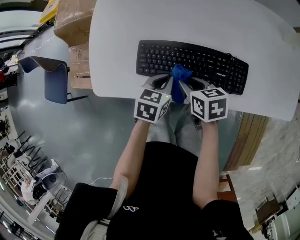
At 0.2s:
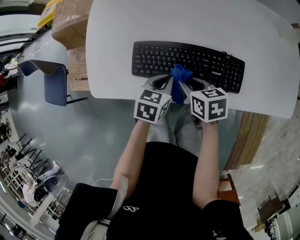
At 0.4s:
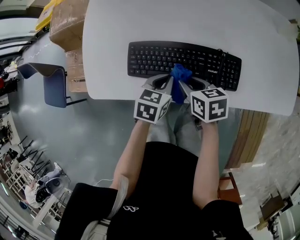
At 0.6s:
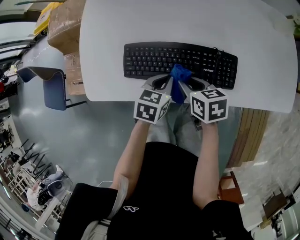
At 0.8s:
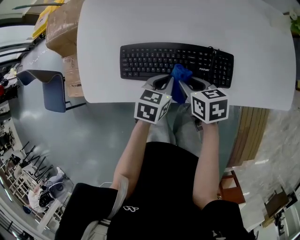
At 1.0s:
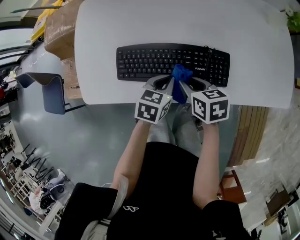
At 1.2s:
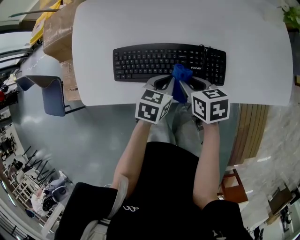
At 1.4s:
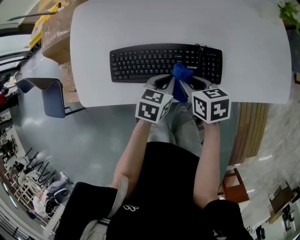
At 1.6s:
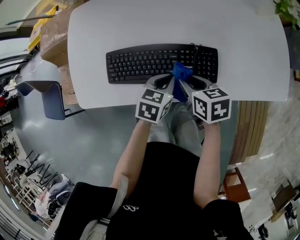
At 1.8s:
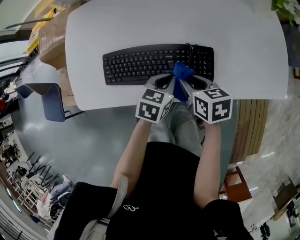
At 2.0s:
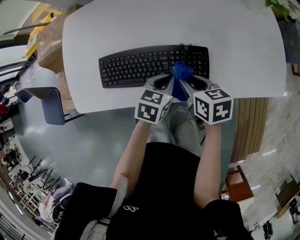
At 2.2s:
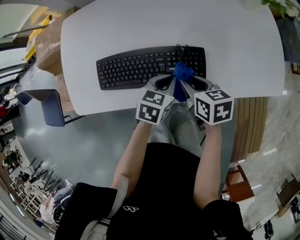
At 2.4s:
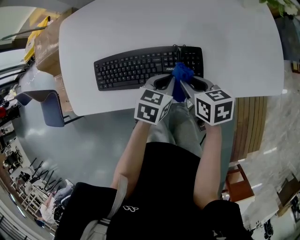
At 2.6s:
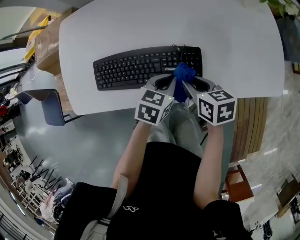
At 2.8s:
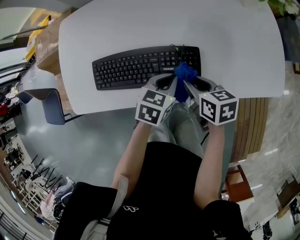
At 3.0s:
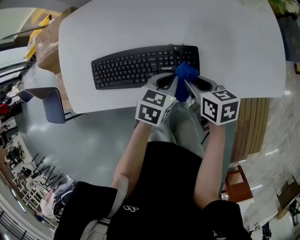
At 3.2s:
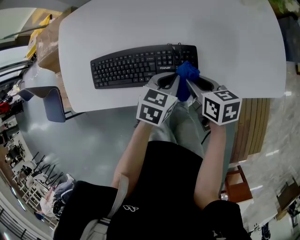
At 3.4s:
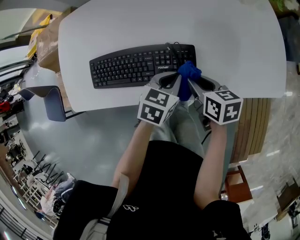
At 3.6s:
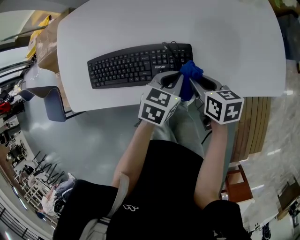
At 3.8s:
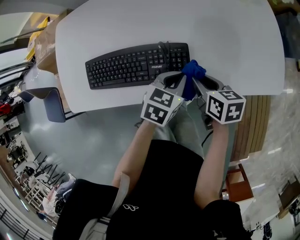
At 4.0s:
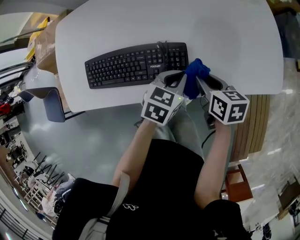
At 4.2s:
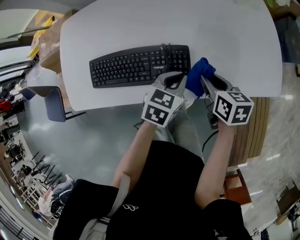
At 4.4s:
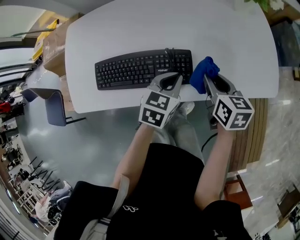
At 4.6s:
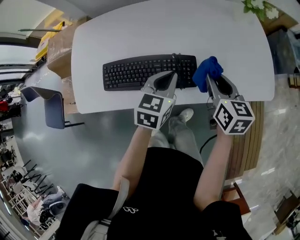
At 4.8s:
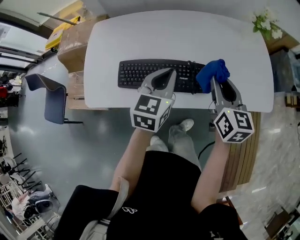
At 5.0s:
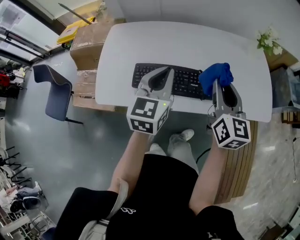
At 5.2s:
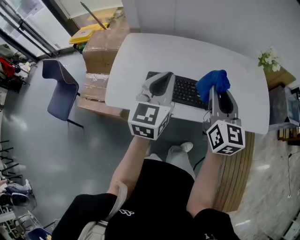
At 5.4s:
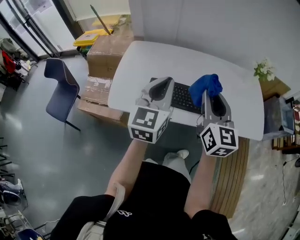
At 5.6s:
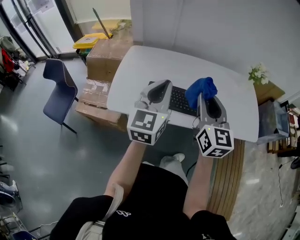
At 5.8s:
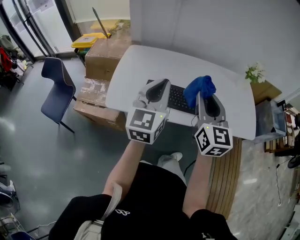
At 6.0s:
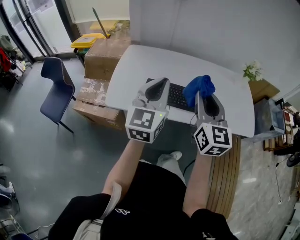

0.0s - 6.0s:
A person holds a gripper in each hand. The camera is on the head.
0.0s - 1.6s: The two grippers go some 15 cm to the right.
1.6s - 3.0s: The grippers both shift to the right by about 10 cm.
3.0s - 4.4s: The right gripper heads to the right and upward, covering roughly 10 cm; the left gripper goes roughly 5 cm upward.
4.4s - 6.0s: The grippers both shift upward, to the left and backward by approximately 40 cm. The left gripper tips its fingers upward by about 40 degrees; the right gripper points its fingers roughly 40 degrees further upward.

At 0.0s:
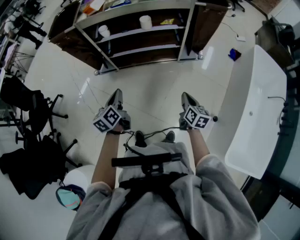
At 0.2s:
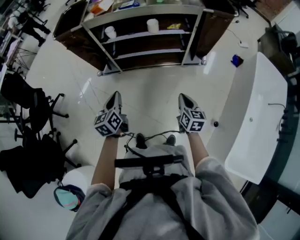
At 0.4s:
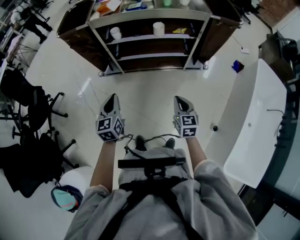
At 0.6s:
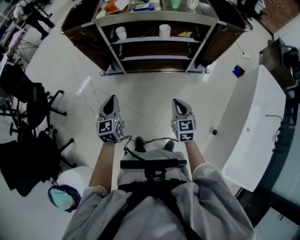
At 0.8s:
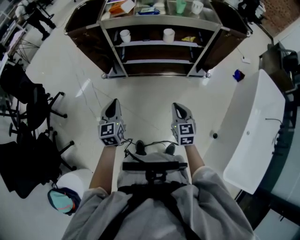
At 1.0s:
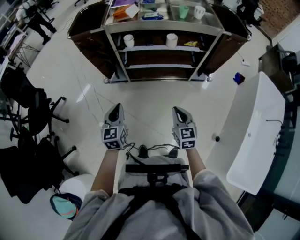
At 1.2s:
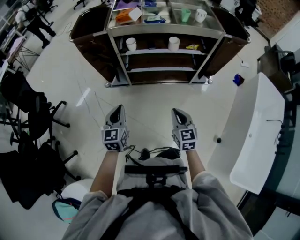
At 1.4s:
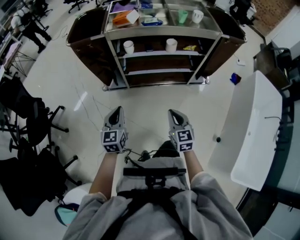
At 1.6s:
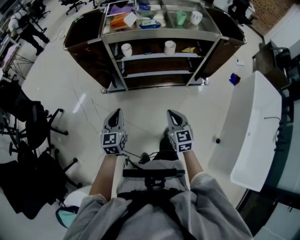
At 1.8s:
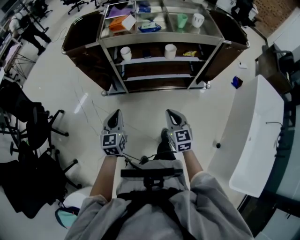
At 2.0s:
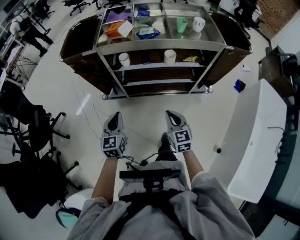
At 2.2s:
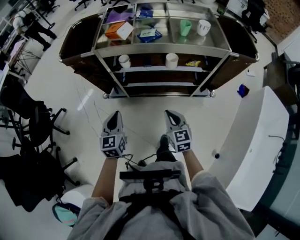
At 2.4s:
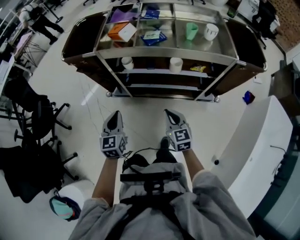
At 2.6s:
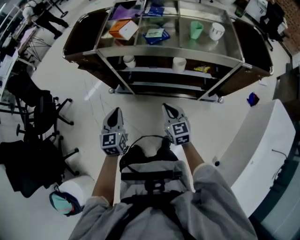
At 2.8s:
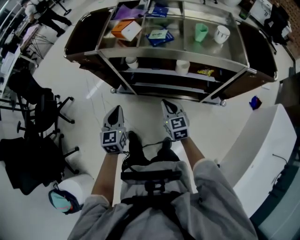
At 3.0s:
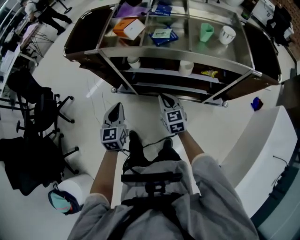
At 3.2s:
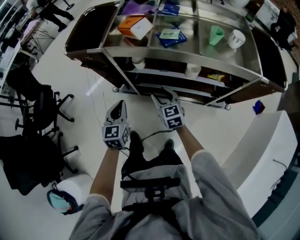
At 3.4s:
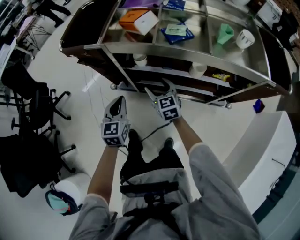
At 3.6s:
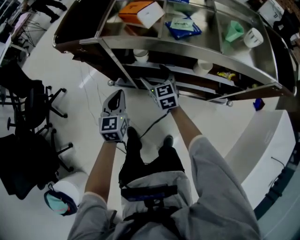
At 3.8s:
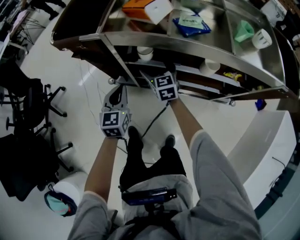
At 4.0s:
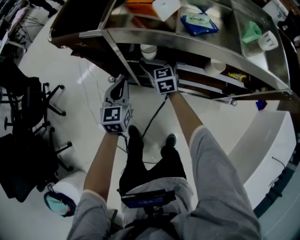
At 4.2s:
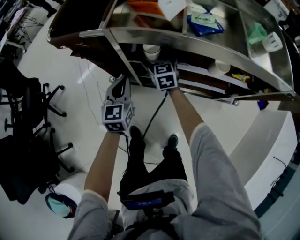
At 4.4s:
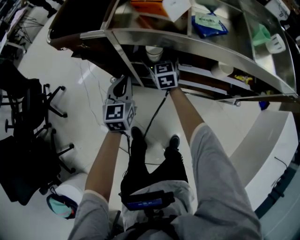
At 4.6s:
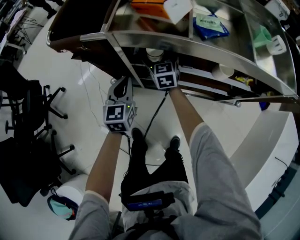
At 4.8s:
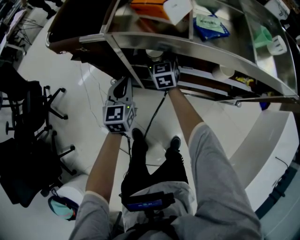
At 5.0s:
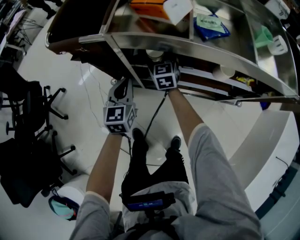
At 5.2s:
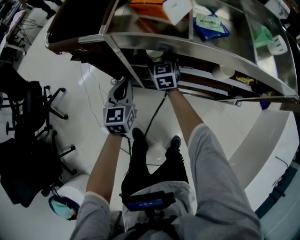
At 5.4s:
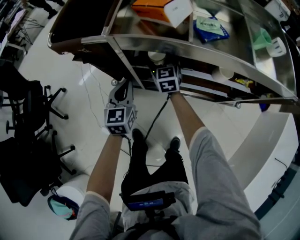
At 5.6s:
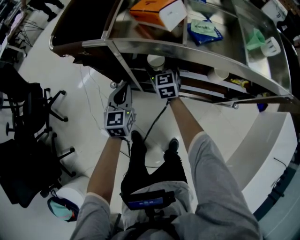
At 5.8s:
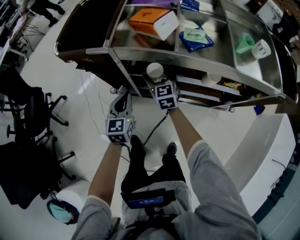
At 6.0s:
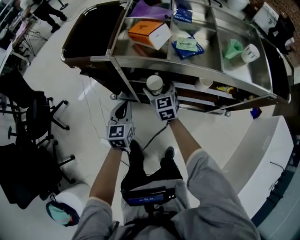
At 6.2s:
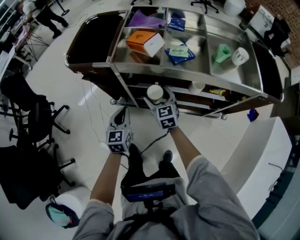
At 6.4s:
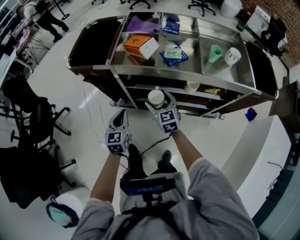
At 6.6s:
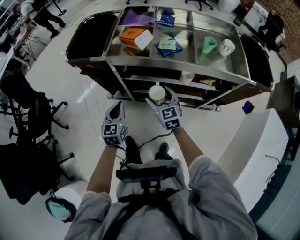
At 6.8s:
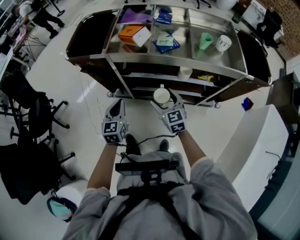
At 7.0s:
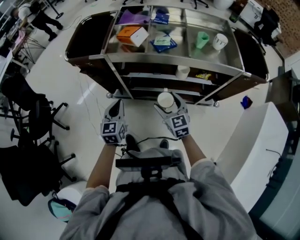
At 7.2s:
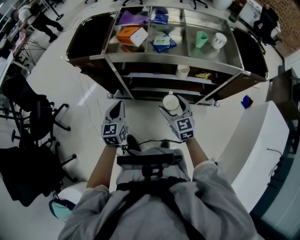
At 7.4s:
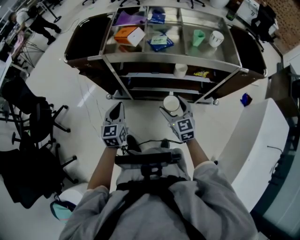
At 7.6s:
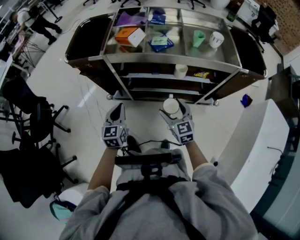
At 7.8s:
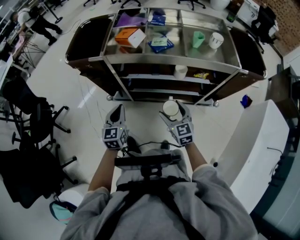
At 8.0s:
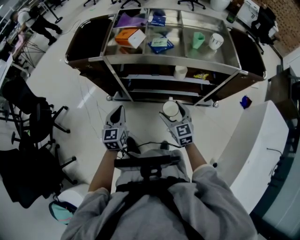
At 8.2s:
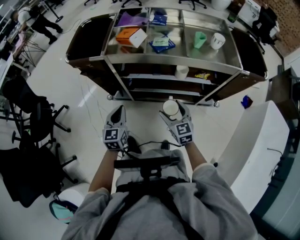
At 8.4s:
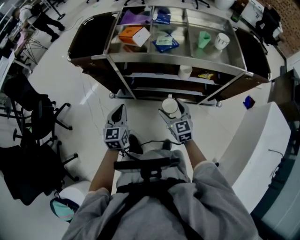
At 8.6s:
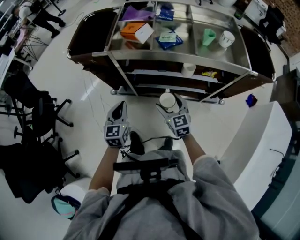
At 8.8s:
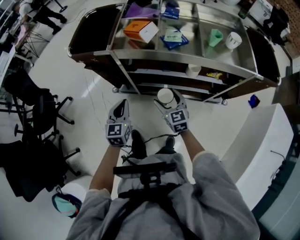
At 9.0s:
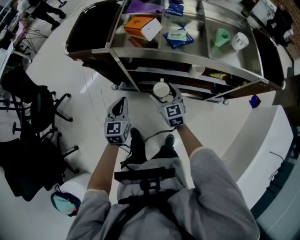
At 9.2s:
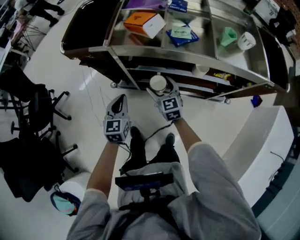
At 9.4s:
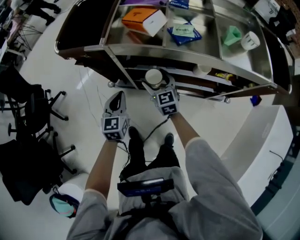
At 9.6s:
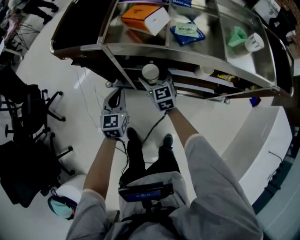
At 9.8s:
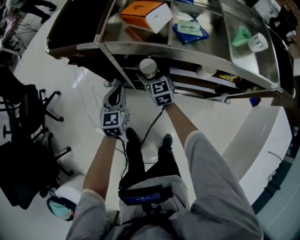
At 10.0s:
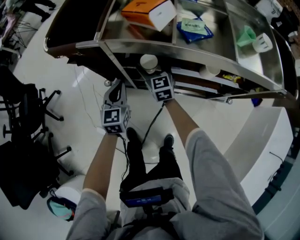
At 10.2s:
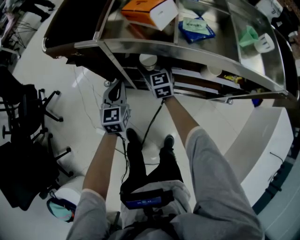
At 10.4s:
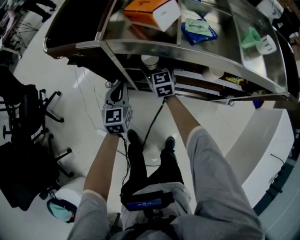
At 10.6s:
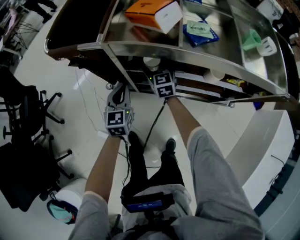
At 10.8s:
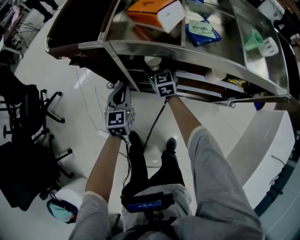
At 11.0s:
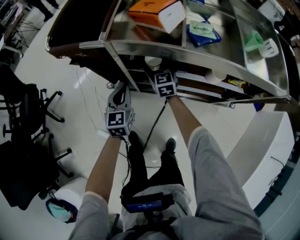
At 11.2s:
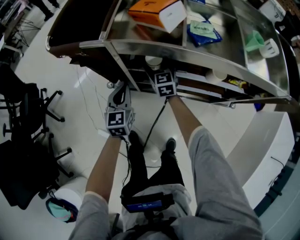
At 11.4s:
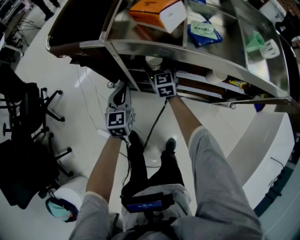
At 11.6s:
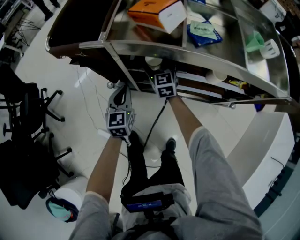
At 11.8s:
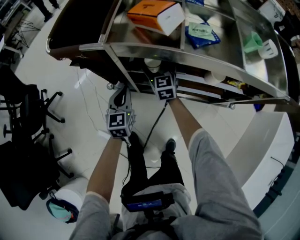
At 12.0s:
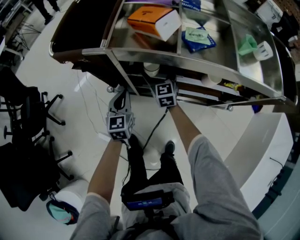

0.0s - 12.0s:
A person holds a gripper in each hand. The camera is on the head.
0.0s - 1.6s: The right gripper travels to the left by some 25 cm, and turns by approximately 40 degrees. Meanwhile the left gripper travels to the left and forward by approximately 15 cm, and rotates roughly 30 degrees.
1.6s - 3.0s: The left gripper goes roughly 20 cm forward and to the right, while the right gripper moves forward, about 30 cm.
3.0s - 4.4s: The right gripper shifts about 30 cm forward and to the left, and opens its fingers. Meanwhile the left gripper heads forward and downward, covering some 20 cm.
4.4s - 6.0s: The right gripper heads backward and upward, covering approximately 15 cm; the left gripper moves backward, some 5 cm.
6.0s - 7.6s: The left gripper goes approximately 15 cm backward and upward. The right gripper is displaced backward and to the right by some 25 cm.
7.6s - 9.0s: The left gripper moves forward, about 5 cm. The right gripper goes about 15 cm forward, to the left and downward.
9.0s - 10.4s: The right gripper is displaced forward by approximately 20 cm. The left gripper moves forward and downward, approximately 15 cm.
10.4s - 12.0s: The grippers make only small movements.

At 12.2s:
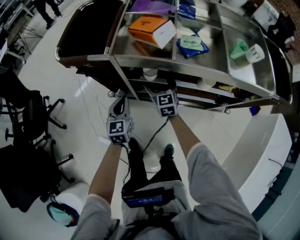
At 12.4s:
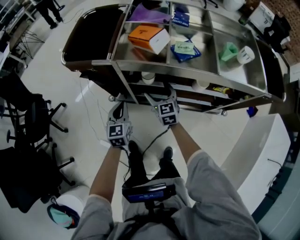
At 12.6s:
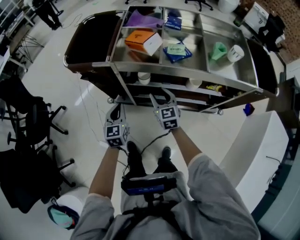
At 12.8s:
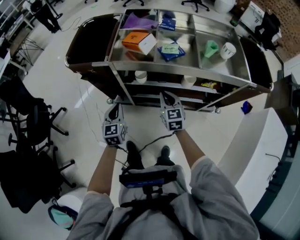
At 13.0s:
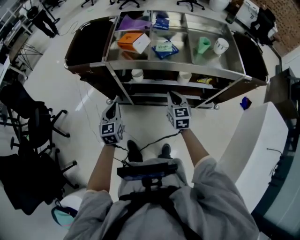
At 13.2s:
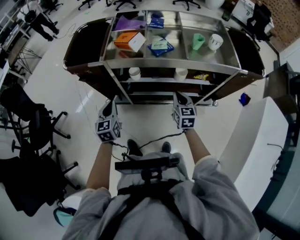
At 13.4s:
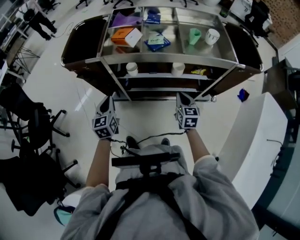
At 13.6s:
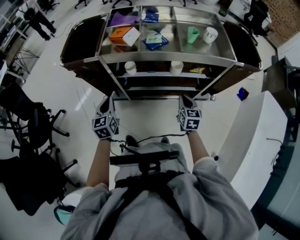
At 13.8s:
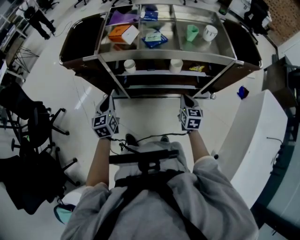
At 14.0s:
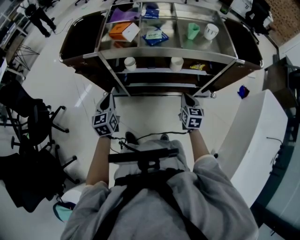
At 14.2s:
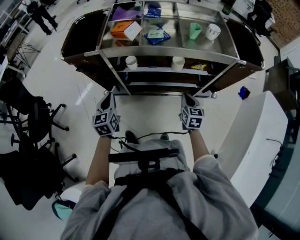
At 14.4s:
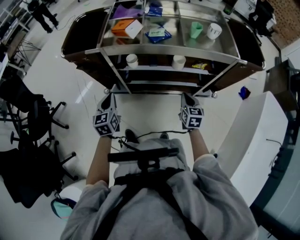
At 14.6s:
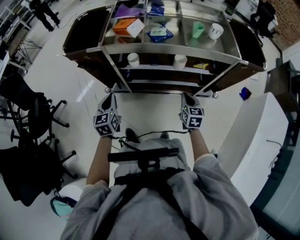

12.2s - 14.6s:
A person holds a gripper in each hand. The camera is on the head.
12.2s - 13.4s: The right gripper travels backward, to the right and upward by some 30 cm, turns by roughly 20 degrees, and closes. The left gripper heads upward and backward, covering some 15 cm.
13.4s - 14.6s: The right gripper shifts by roughly 5 cm.
